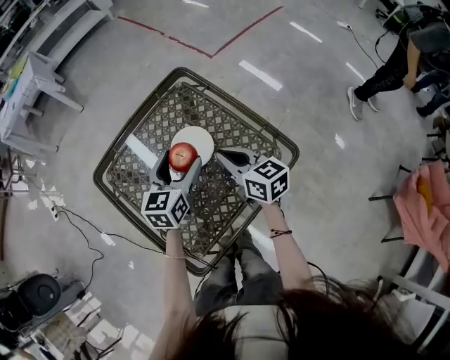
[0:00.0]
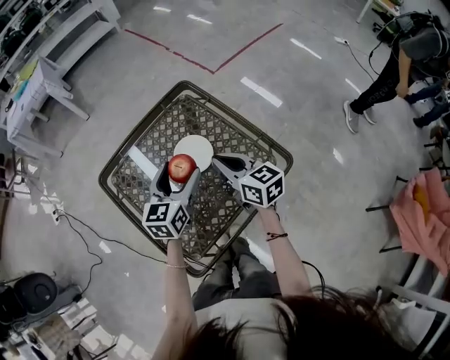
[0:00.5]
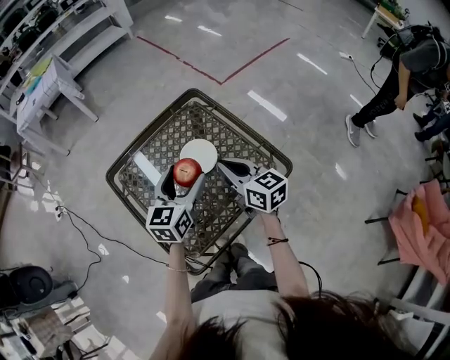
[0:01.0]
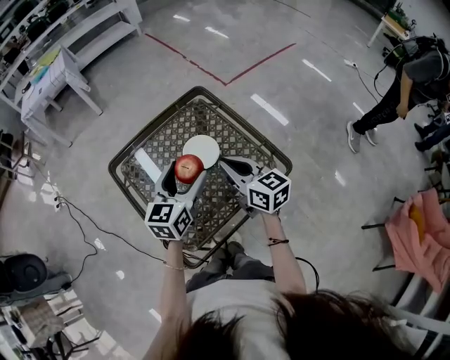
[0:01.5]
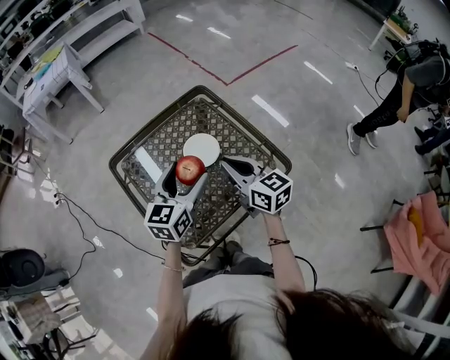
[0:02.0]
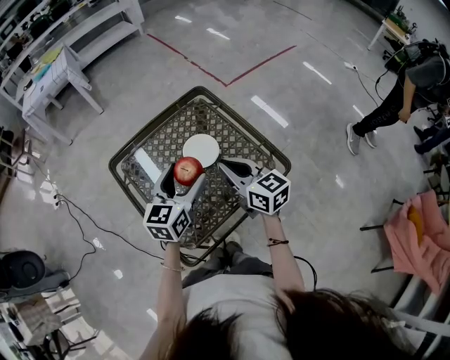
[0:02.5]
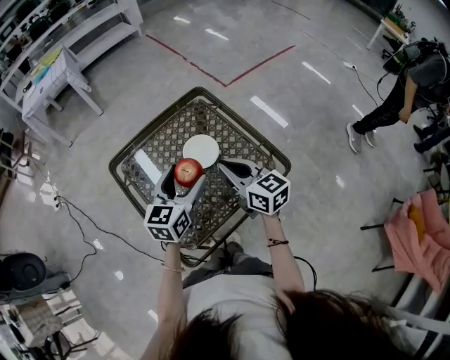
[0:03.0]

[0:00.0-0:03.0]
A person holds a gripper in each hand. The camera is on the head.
0:00.0 to 0:01.5: Both grippers travel together upward and backward, roughly 10 cm.
0:01.5 to 0:03.0: There are only small adjustments of the grippers.

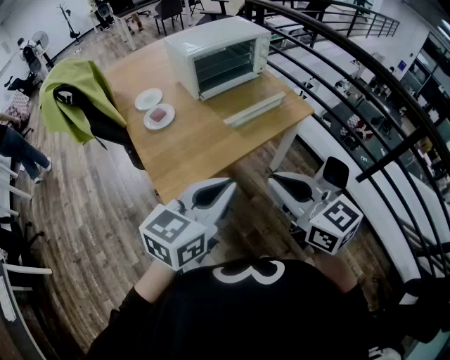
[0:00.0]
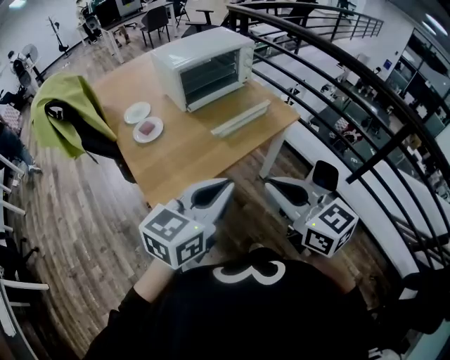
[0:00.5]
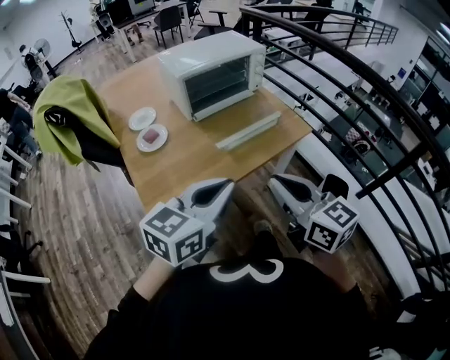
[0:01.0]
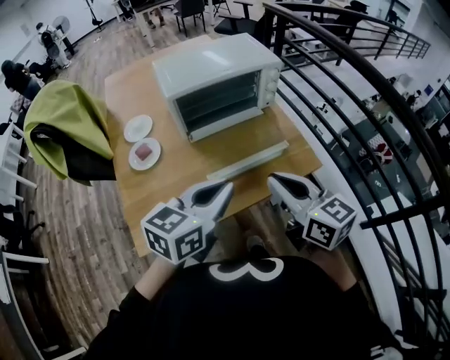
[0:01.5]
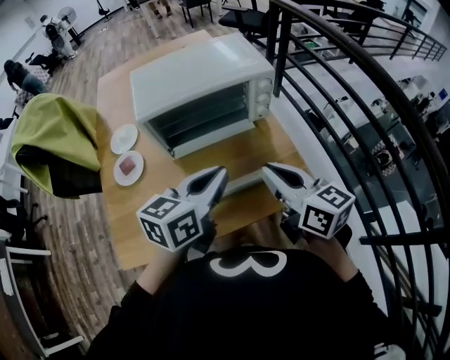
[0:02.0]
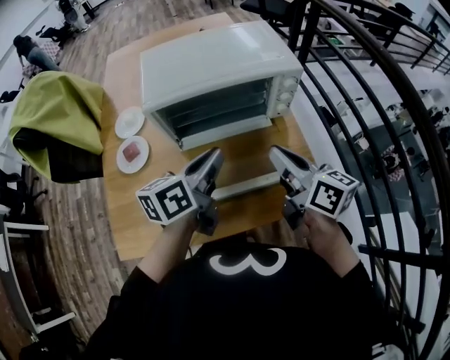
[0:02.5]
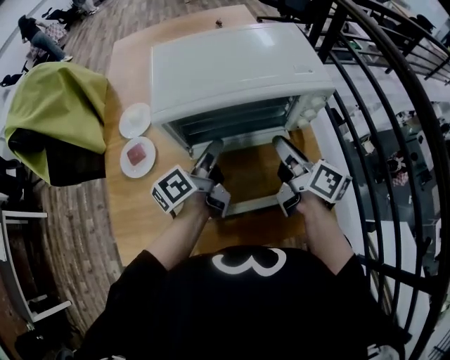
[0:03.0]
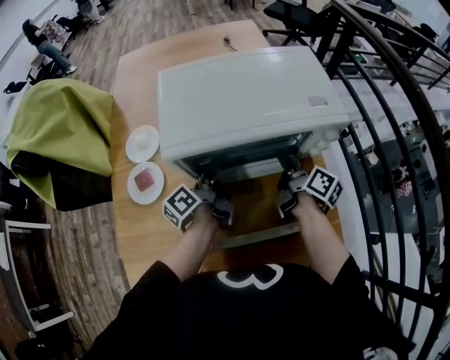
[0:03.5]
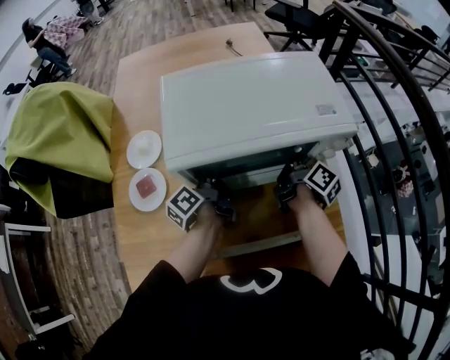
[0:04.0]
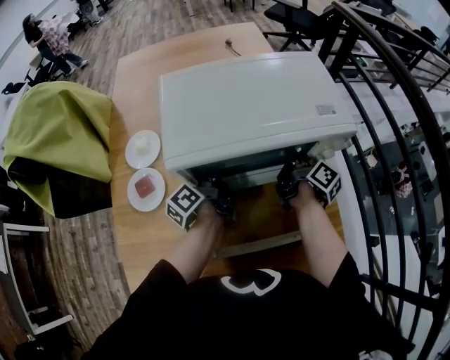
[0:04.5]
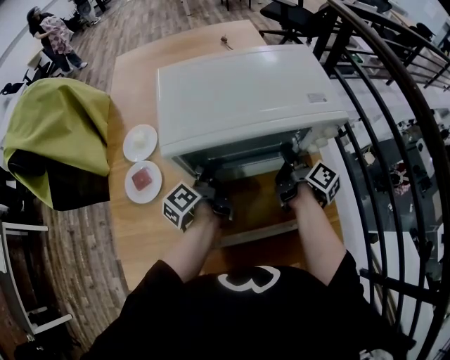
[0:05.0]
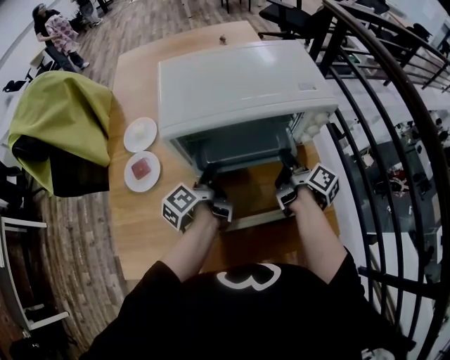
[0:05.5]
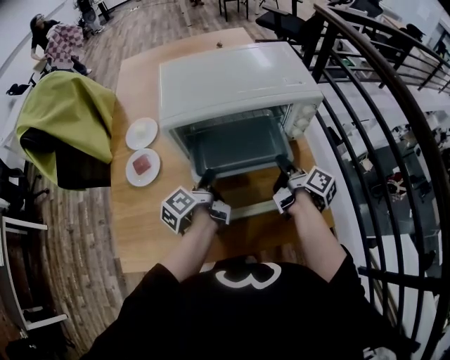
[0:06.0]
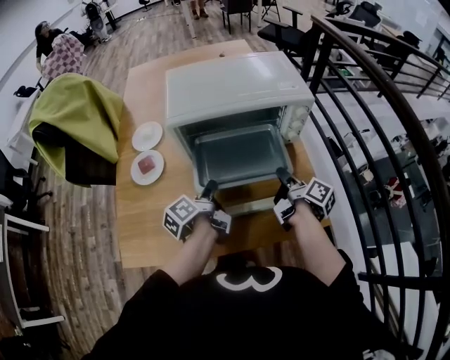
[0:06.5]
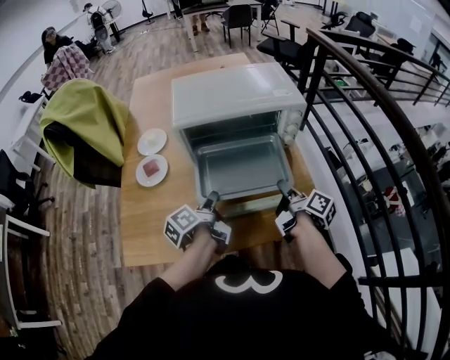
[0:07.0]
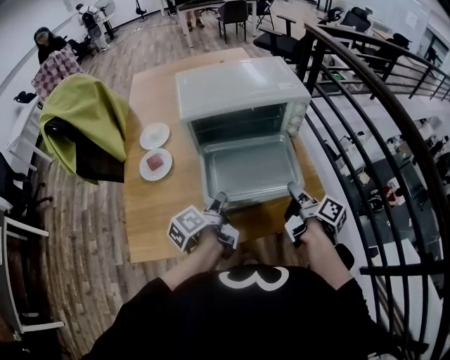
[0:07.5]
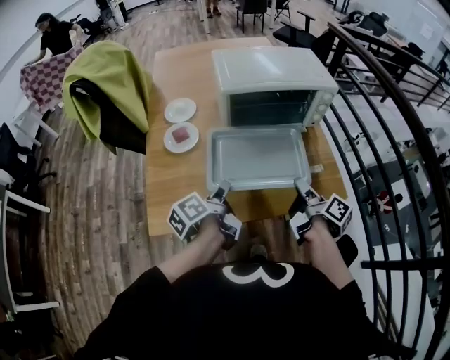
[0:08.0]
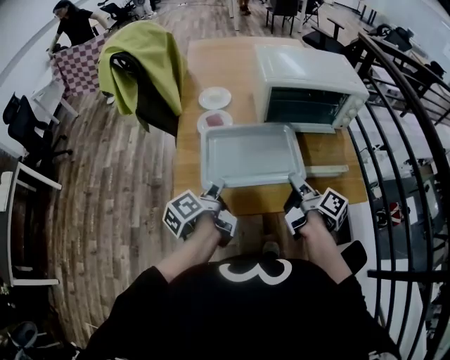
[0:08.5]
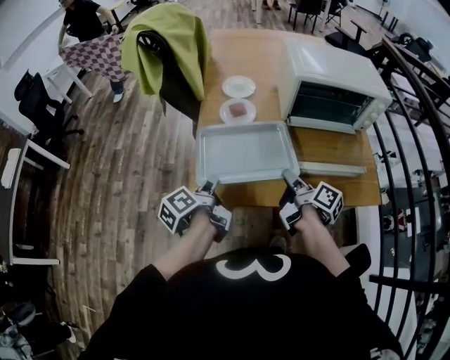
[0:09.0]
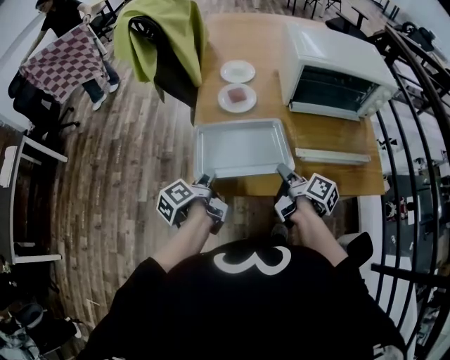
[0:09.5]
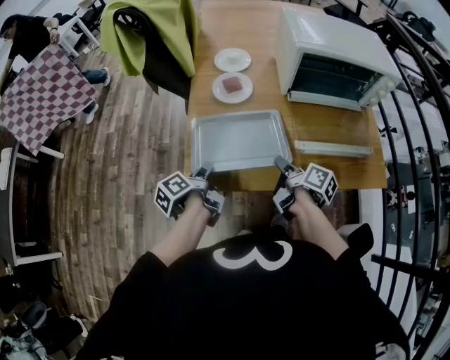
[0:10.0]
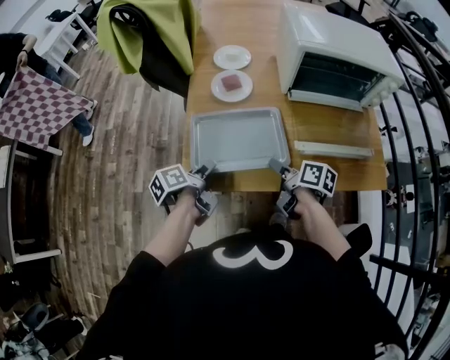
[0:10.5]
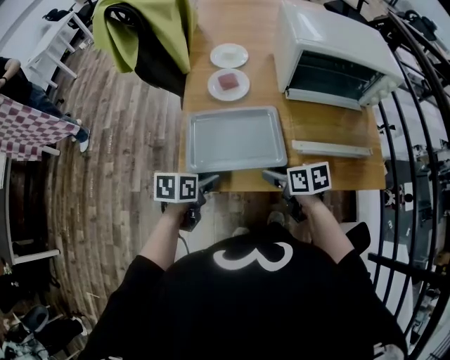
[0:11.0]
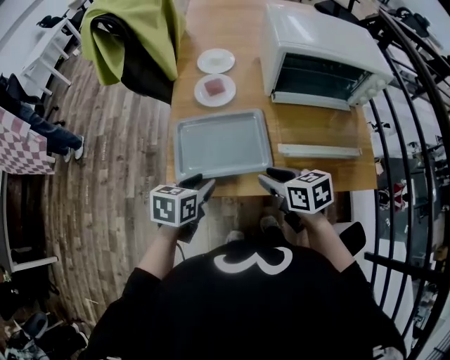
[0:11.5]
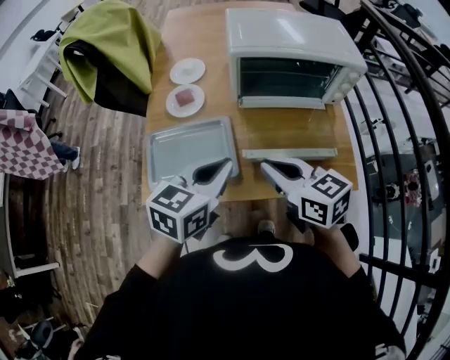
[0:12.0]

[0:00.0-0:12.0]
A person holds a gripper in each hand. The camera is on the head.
0:00.0 to 0:02.0: Both grippers are carried forward, roughly 40 cm. The left gripper turns by roughly 20 degrees.
0:02.0 to 0:04.0: The left gripper heads forward, downward and to the left, covering approximately 35 cm, rotates around the line of its fingers by roughly 60 degrees, counterclockwise from behind, and opens up; the right gripper goes about 35 cm forward and downward, rolls clockwise, seen from behind, by about 50 degrees, and opens its fingers.
0:04.0 to 0:06.0: Both grippers move backward, approximately 15 cm.
0:06.0 to 0:08.0: The grippers both shift backward and to the left by some 20 cm.
0:08.0 to 0:10.0: Both grippers move to the left and downward, some 25 cm. The right gripper changes its angle by approximately 20 degrees, while the left gripper turns by some 20 degrees.
0:10.0 to 0:12.0: The right gripper heads upward and to the right, covering about 20 cm, twists some 60 degrees counterclockwise, seen from behind, and closes; the left gripper travels to the right and upward by roughly 30 cm, rotates around the line of its fingers by roughly 80 degrees, clockwise from behind, and opens, then closes once more.

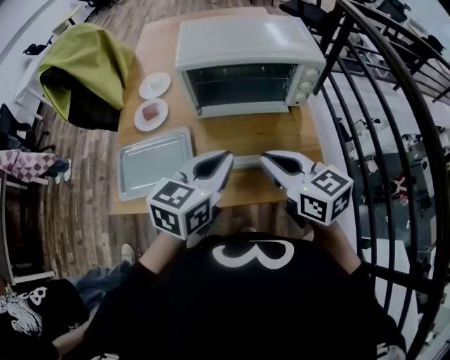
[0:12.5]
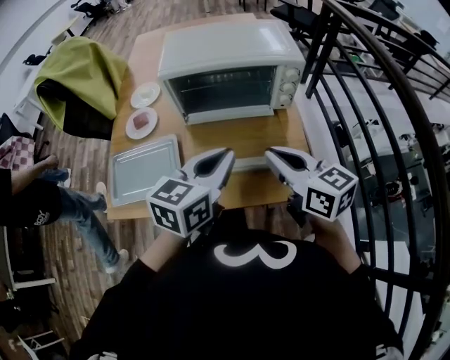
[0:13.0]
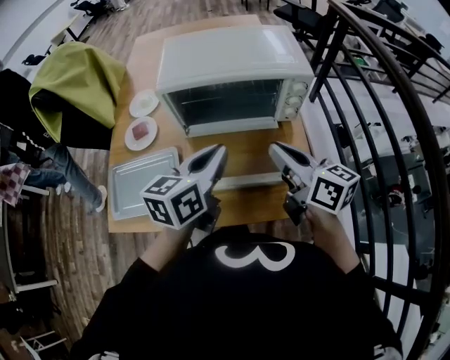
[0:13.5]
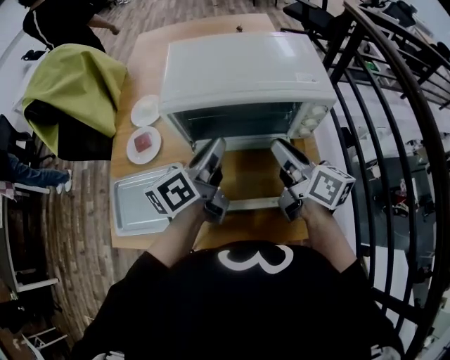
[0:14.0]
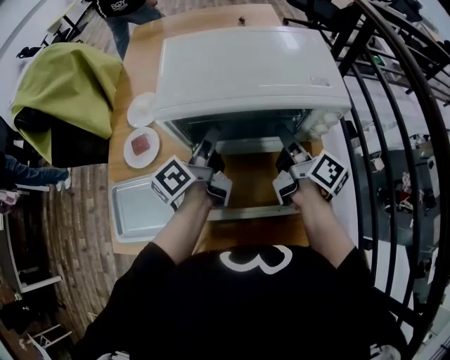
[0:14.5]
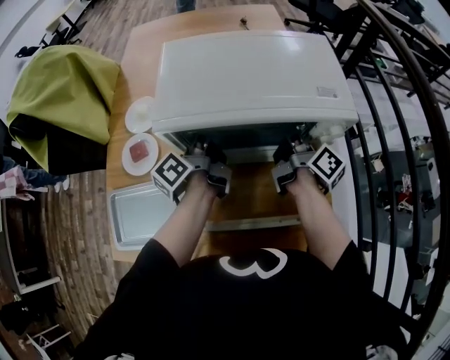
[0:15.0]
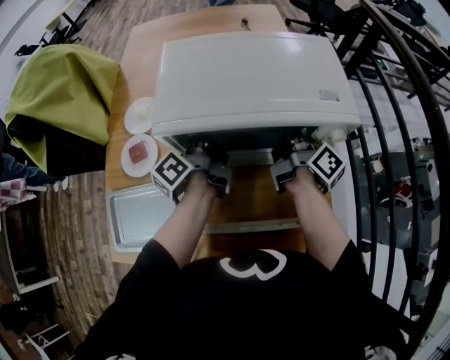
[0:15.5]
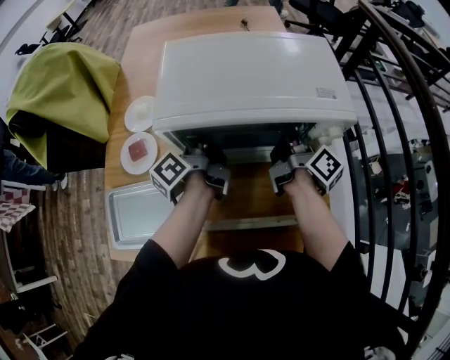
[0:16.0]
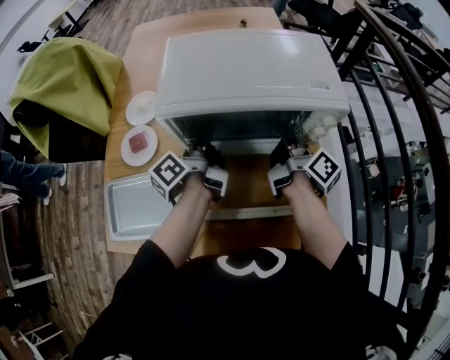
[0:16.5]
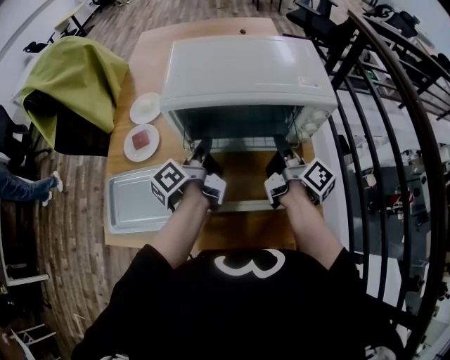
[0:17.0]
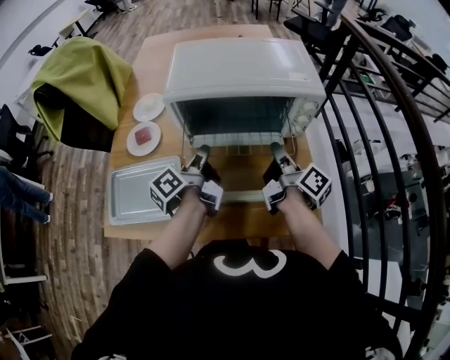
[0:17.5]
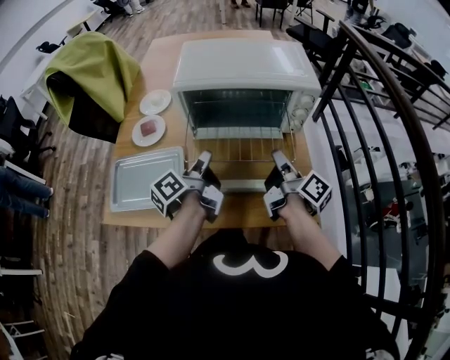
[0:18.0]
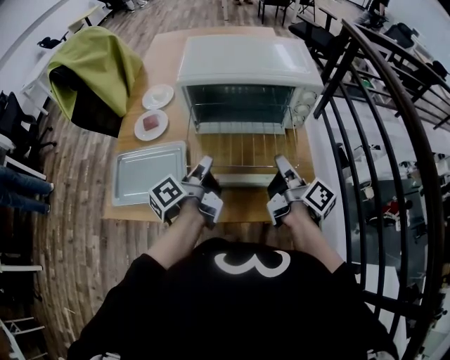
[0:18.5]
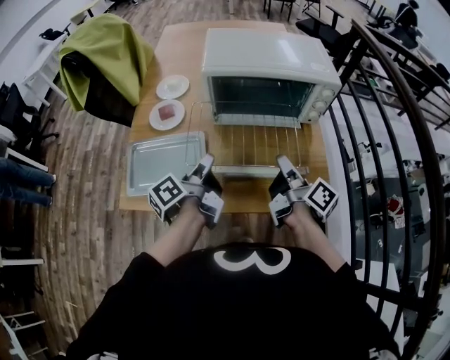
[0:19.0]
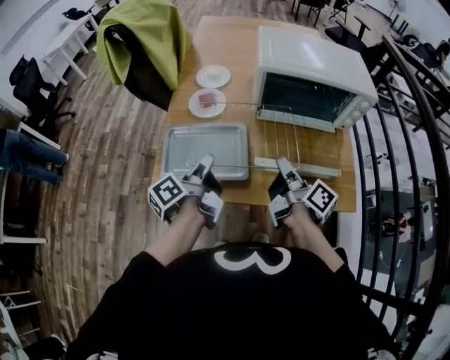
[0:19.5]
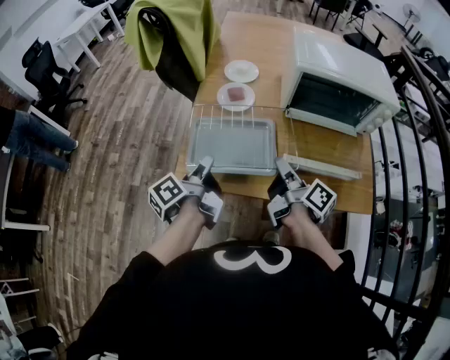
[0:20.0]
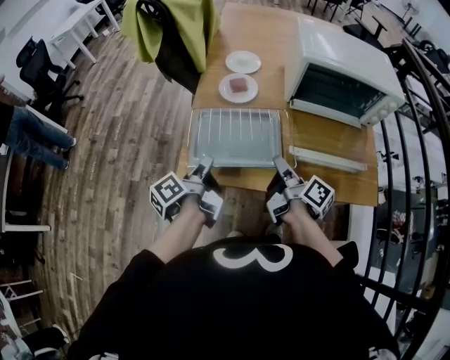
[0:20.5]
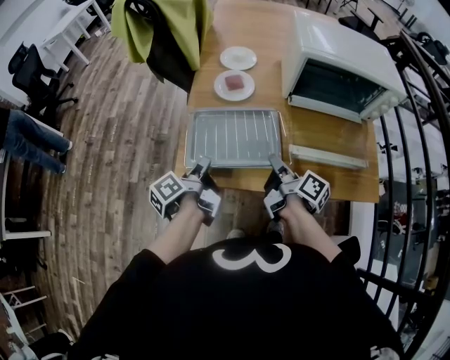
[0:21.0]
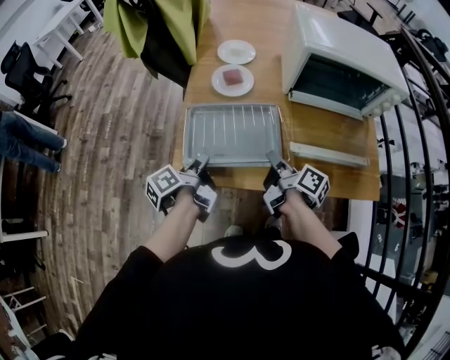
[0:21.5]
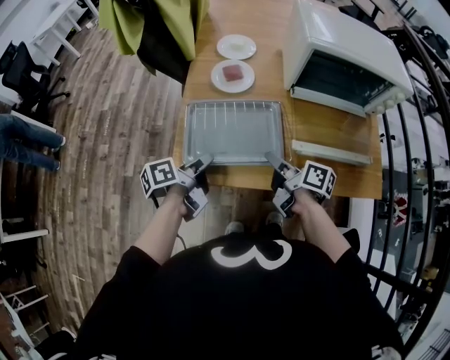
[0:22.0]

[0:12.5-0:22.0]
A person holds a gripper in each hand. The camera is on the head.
0:12.5 to 0:14.5: Both grippers travel together forward, roughly 25 cm. The left gripper rotates around the line of its fingers by approximately 50 degrees, counterclockwise from behind, and opens up. The right gripper rotates around the line of its fingers by some 50 degrees, clockwise from behind, and opens.
0:14.5 to 0:16.5: The left gripper closes up, while the right gripper closes its fingers.
0:16.5 to 0:18.0: The grippers both shift backward by about 15 cm.
0:18.0 to 0:20.0: Both grippers move to the left, about 30 cm.
0:20.0 to 0:22.0: Both grippers move downward, some 10 cm. The right gripper rotates approximately 20 degrees. Meanwhile the left gripper changes its angle by approximately 30 degrees.

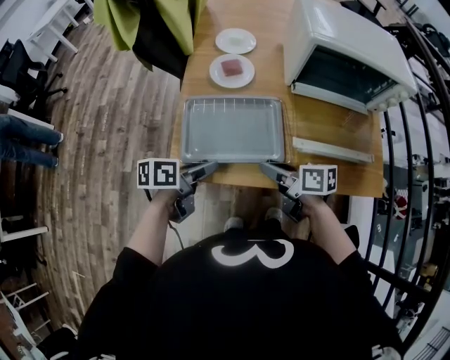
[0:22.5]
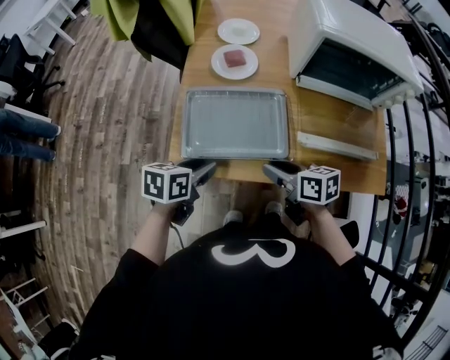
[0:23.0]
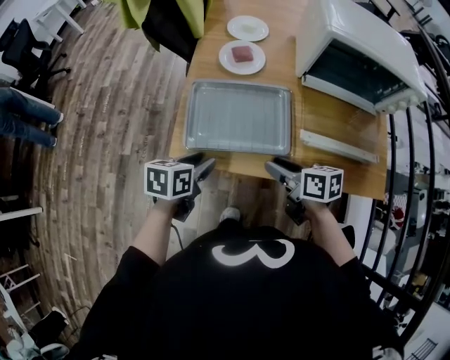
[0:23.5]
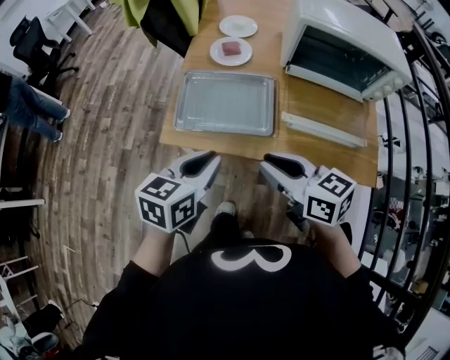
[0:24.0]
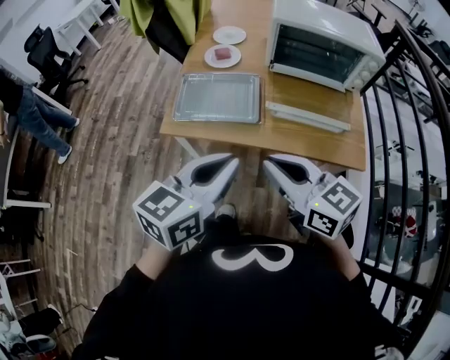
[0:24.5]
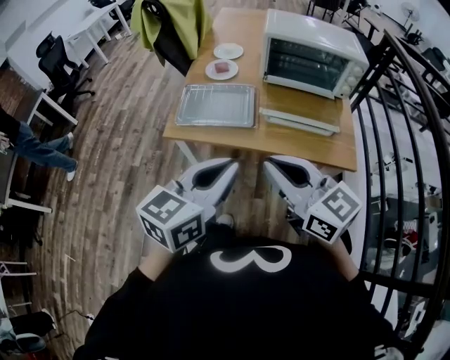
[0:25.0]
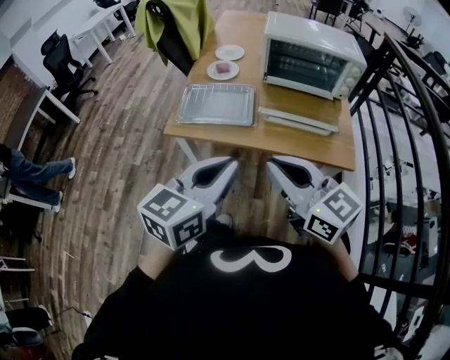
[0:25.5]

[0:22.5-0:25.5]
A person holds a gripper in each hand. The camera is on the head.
0:22.5 to 0:24.0: The left gripper travels upward, backward and to the right by roughly 15 cm, swivels approximately 40 degrees, and closes up. The right gripper moves upward and backward, roughly 15 cm, turns by approximately 30 degrees, and closes.
0:24.0 to 0:25.5: The left gripper goes about 25 cm backward, upward and to the right, and turns by some 20 degrees, while the right gripper heads backward and upward, covering roughly 20 cm, and turns by some 30 degrees.
